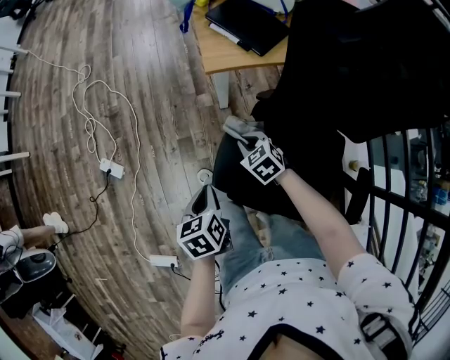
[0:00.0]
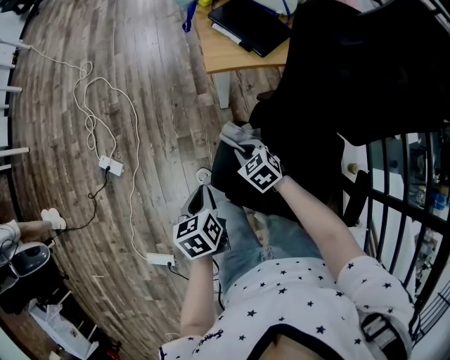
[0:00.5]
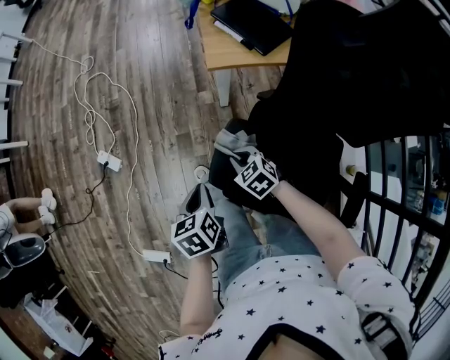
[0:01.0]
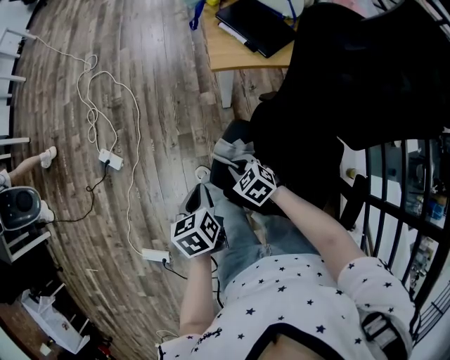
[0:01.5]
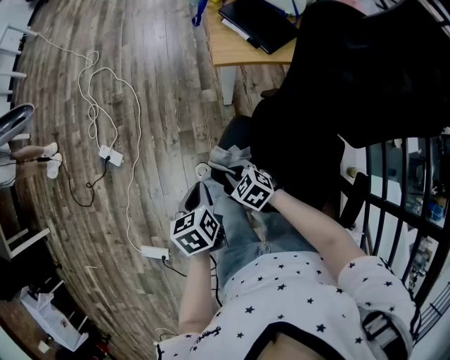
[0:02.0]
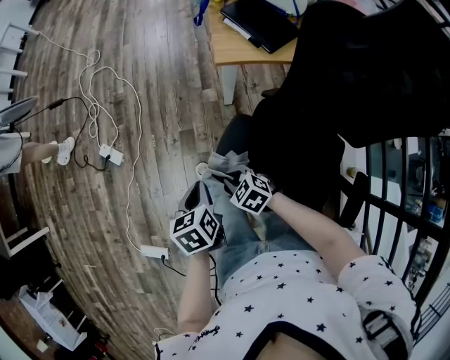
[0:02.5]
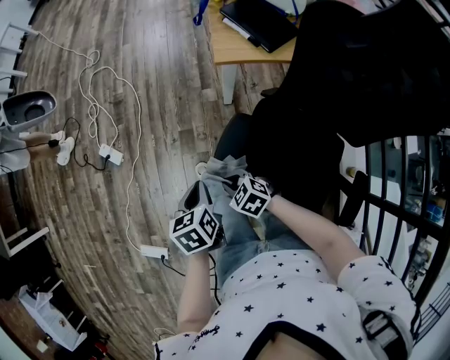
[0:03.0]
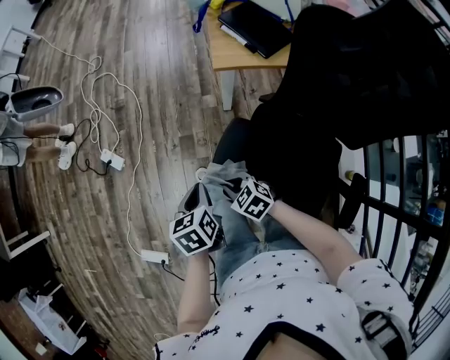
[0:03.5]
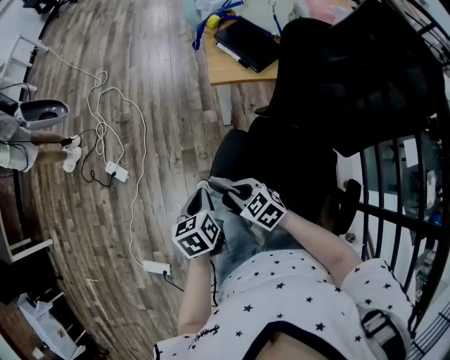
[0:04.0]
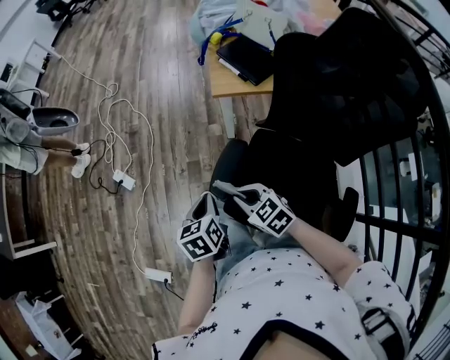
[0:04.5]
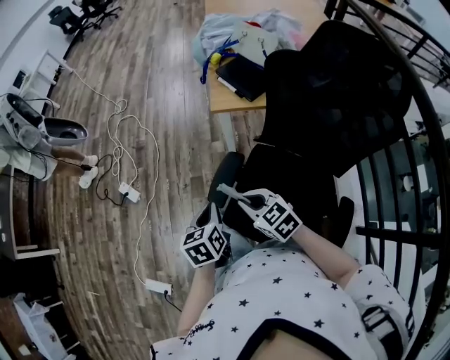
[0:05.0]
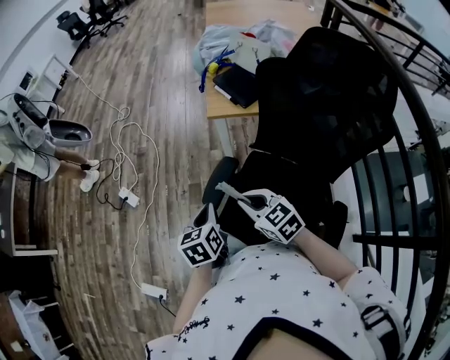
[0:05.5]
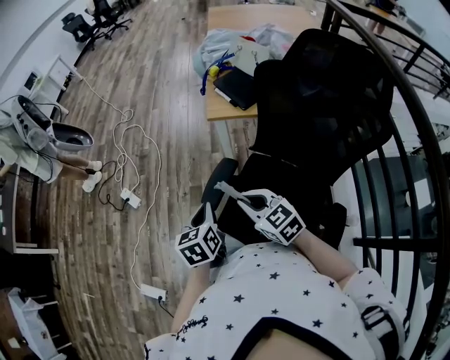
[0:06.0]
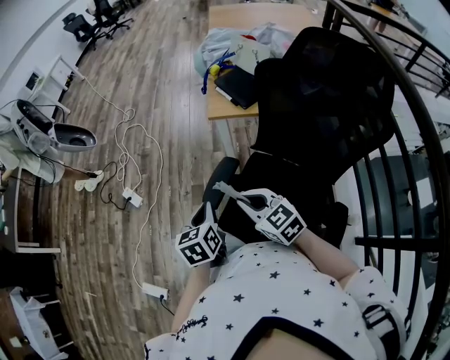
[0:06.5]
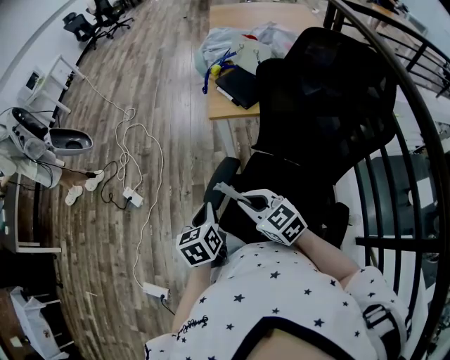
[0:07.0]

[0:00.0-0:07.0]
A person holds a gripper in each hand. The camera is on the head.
0:00.0 to 0:02.0: The right gripper moves to the left and backward, roughly 15 cm.
0:02.0 to 0:03.5: There are only small adjustments of the grippers.
0:03.5 to 0:05.0: The left gripper shifts approximately 10 cm upward and backward; the right gripper is displaced upward and to the right by roughly 20 cm, and rotates some 20 degrees.
0:05.0 to 0:07.0: The right gripper shifts about 5 cm upward.

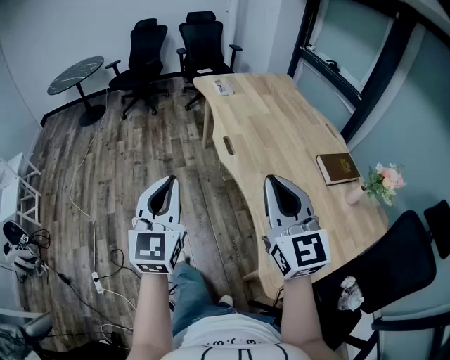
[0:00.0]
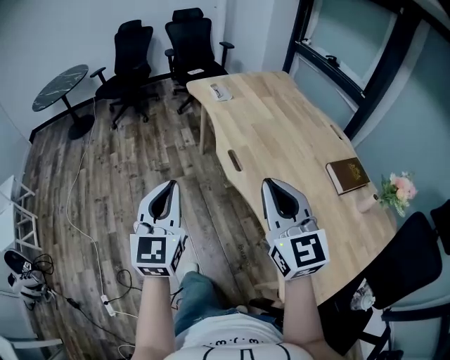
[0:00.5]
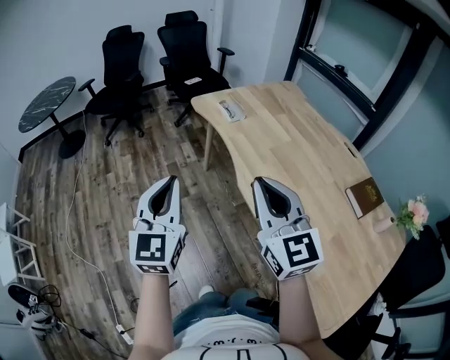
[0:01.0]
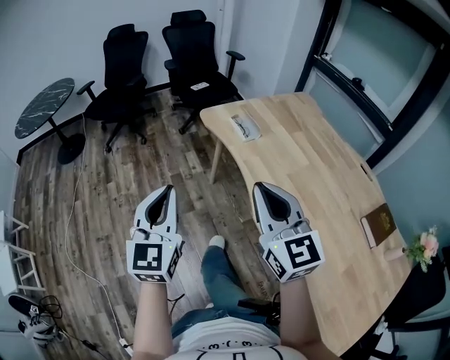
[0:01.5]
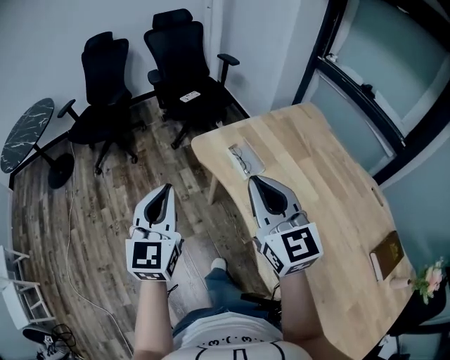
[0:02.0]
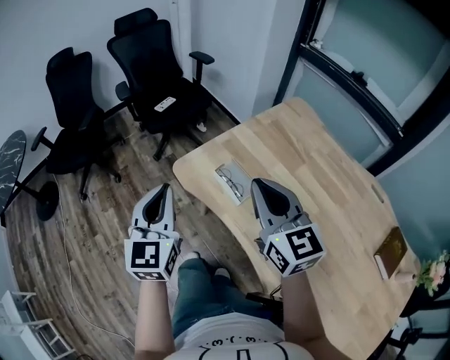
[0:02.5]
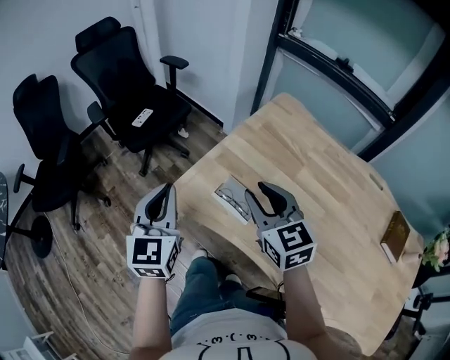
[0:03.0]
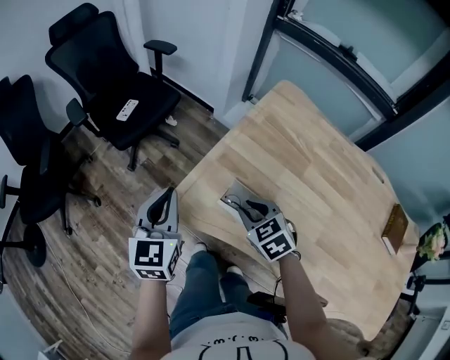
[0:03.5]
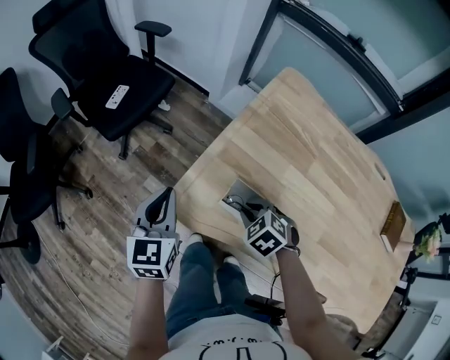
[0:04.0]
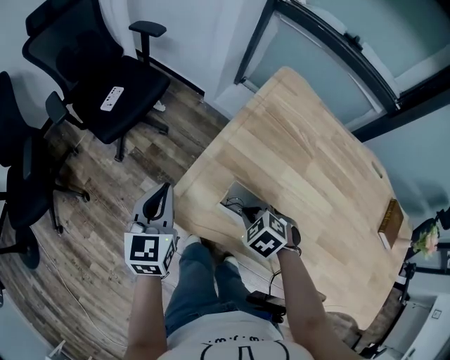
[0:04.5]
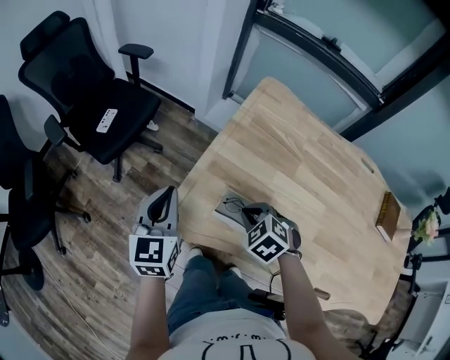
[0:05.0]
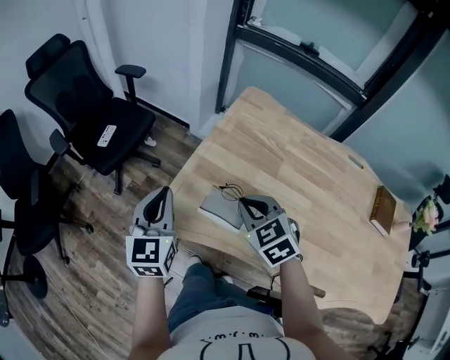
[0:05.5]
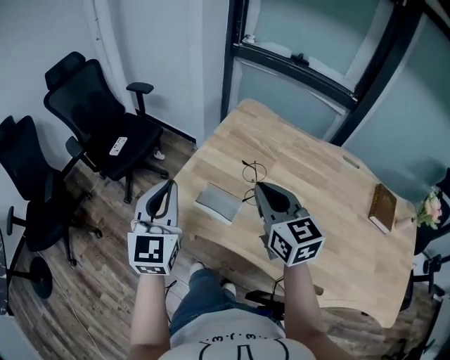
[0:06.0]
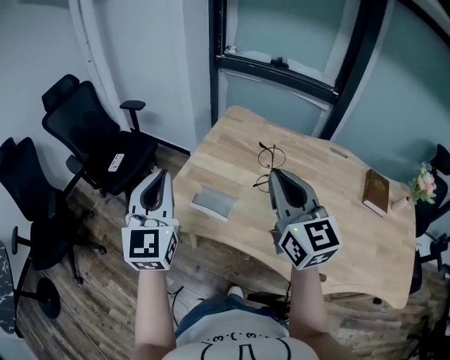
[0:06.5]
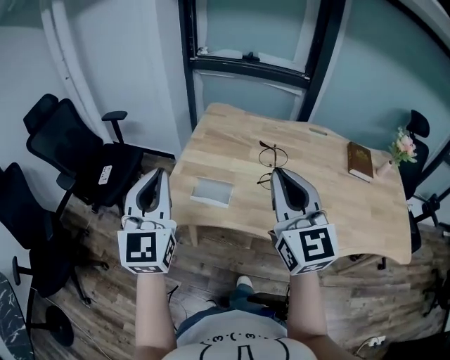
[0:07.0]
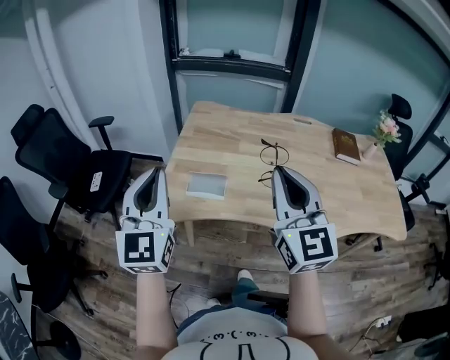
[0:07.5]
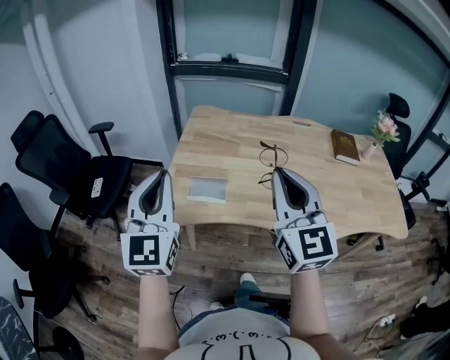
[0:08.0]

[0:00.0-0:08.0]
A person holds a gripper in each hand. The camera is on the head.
0:00.0 to 0:02.0: Both grippers are carried forward, about 70 cm.
0:02.0 to 0:04.0: The left gripper shifts by roughly 40 cm, and swivels approximately 40 degrees. The right gripper heads downward, covering roughly 30 cm, and points its fingers roughly 60 degrees further downward.
0:04.0 to 0:06.0: The left gripper moves upward, to the right and backward, about 20 cm, and turns by some 20 degrees, while the right gripper goes some 25 cm upward, and points its fingers roughly 50 degrees further upward.
0:06.0 to 0:08.0: The left gripper ends up some 15 cm from where it was, and swivels roughly 20 degrees. Meanwhile the right gripper changes place by roughly 25 cm, and changes its angle by roughly 40 degrees.

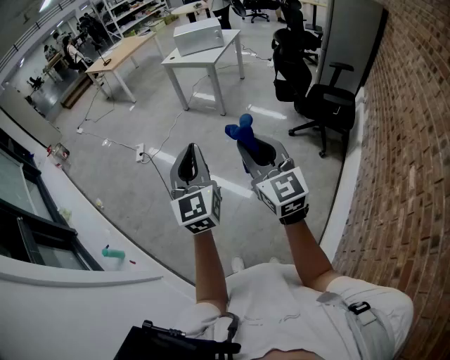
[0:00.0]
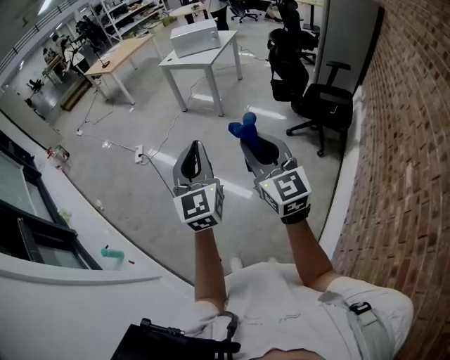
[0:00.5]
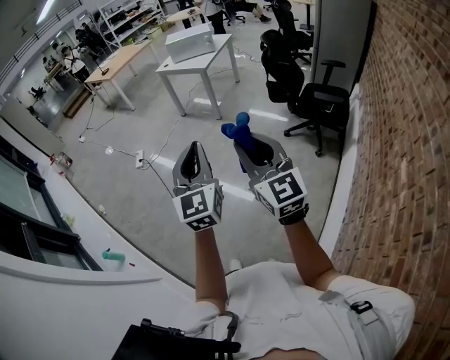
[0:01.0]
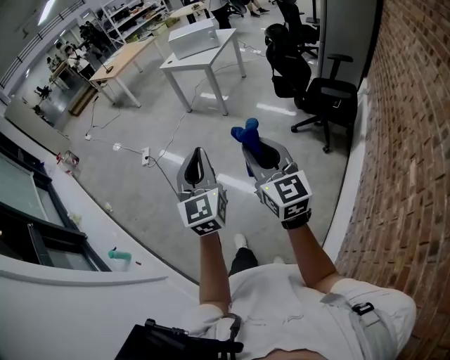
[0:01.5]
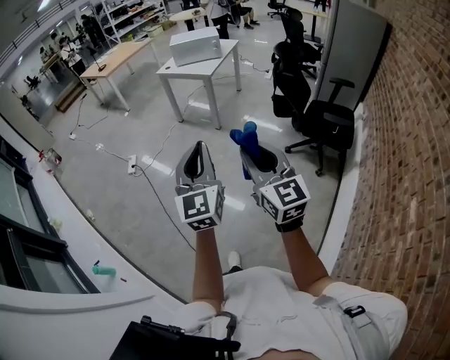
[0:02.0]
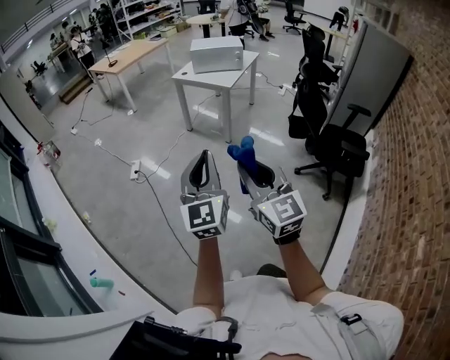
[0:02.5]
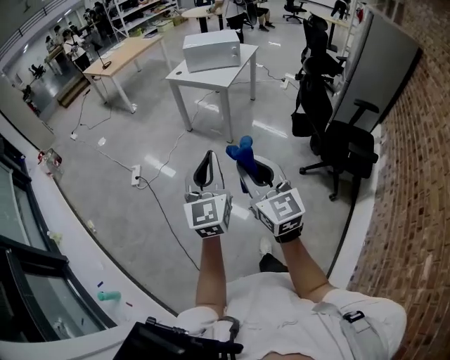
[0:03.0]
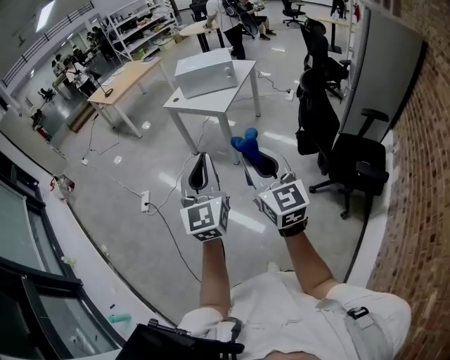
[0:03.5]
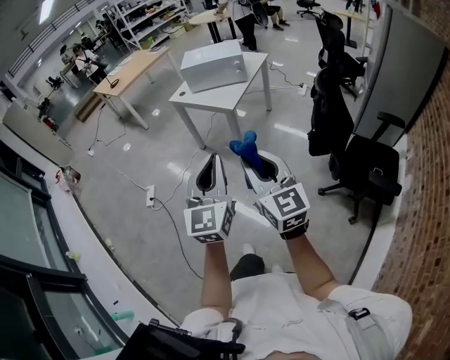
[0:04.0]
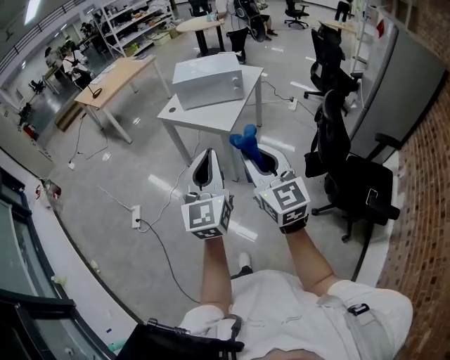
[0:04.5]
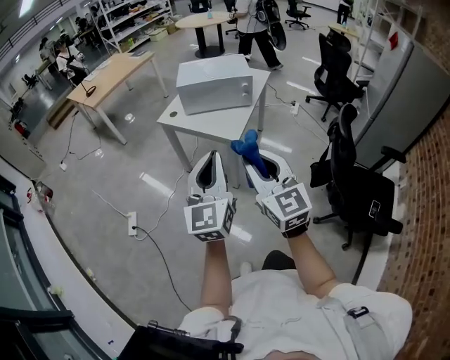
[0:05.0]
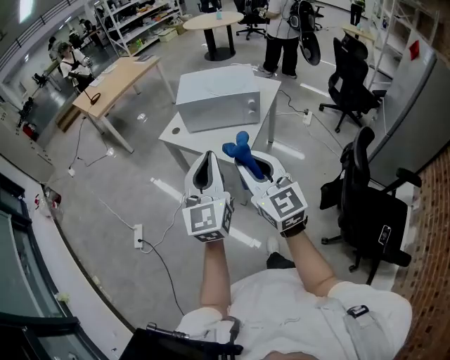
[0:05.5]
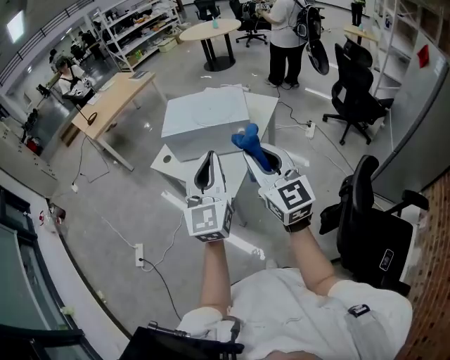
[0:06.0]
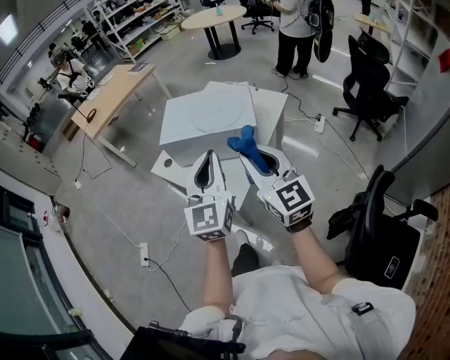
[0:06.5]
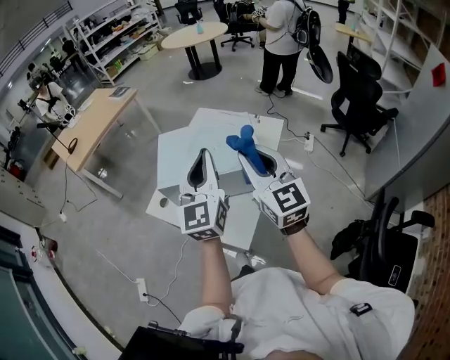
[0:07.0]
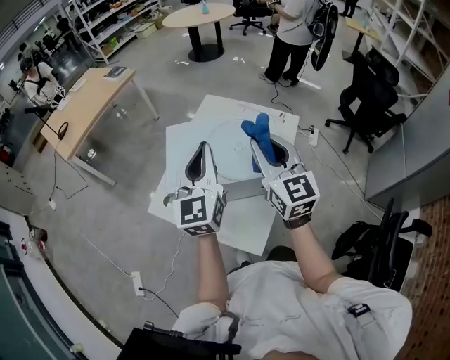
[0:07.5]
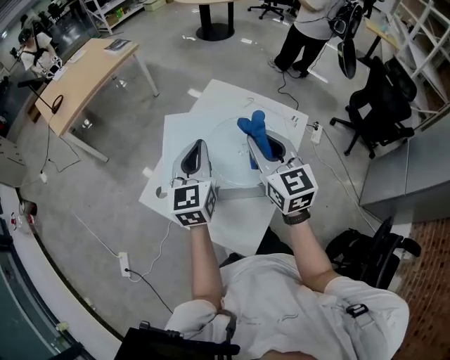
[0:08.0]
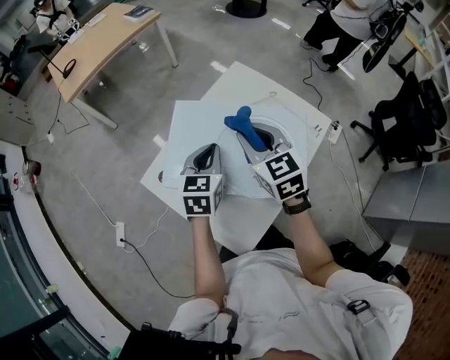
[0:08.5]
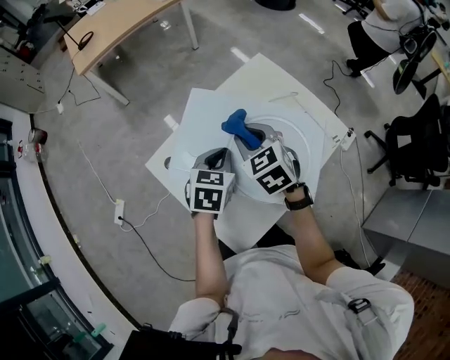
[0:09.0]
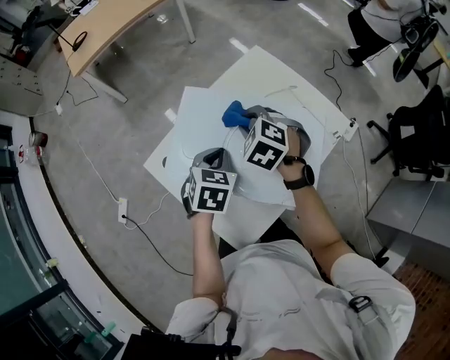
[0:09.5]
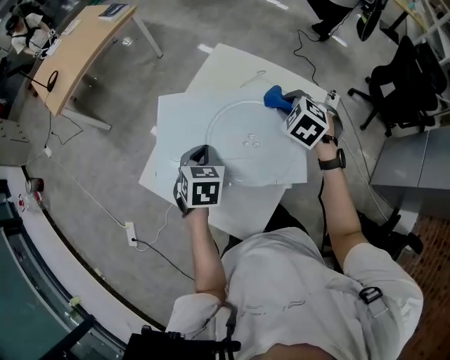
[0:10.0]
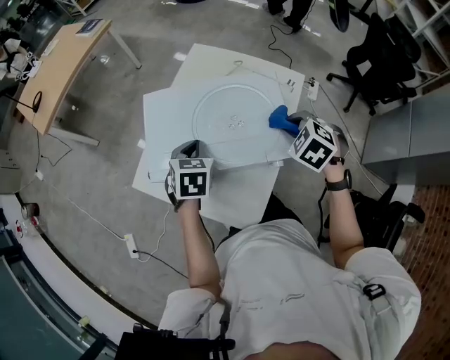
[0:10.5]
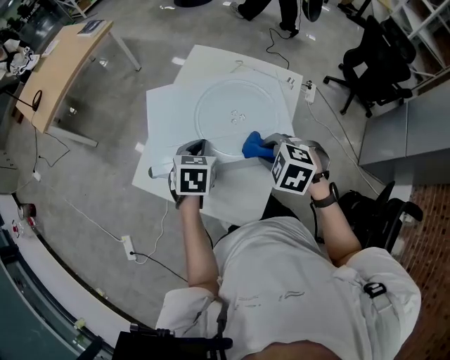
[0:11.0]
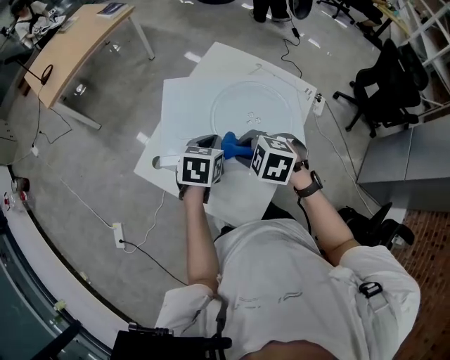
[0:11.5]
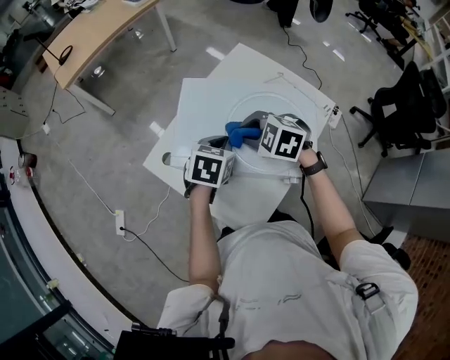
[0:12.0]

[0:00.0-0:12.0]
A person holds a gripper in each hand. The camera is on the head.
0:00.0 to 0:02.0: The right gripper shifts about 10 cm forward; the left gripper heads forward and to the right, covering some 10 cm.
0:02.0 to 0:04.0: Both grippers are carried forward, some 40 cm.
0:04.0 to 0:06.0: The pair of grippers is taken forward, about 60 cm.
0:06.0 to 0:08.0: Both grippers are carried forward, some 40 cm.
0:08.0 to 0:10.0: The right gripper travels downward, forward and to the right by approximately 20 cm, and tilts its fingers about 50 degrees downward. Meanwhile the left gripper is displaced downward by approximately 15 cm, and points its fingers roughly 40 degrees further downward.
0:10.0 to 0:12.0: The right gripper heads to the left, covering approximately 20 cm, and swivels approximately 30 degrees.
